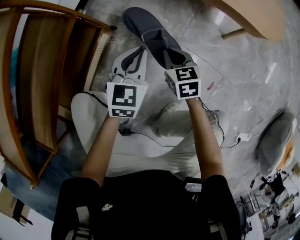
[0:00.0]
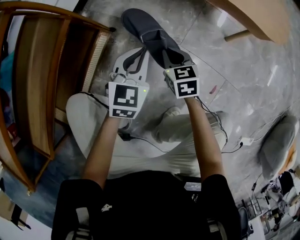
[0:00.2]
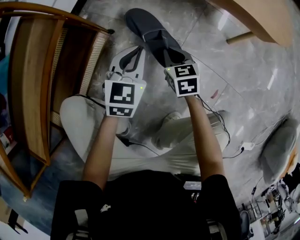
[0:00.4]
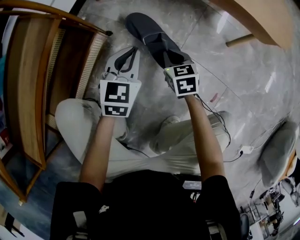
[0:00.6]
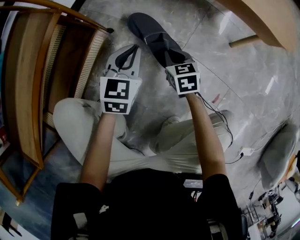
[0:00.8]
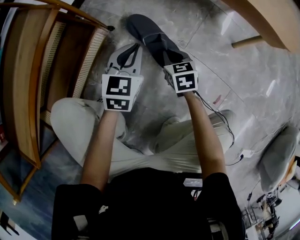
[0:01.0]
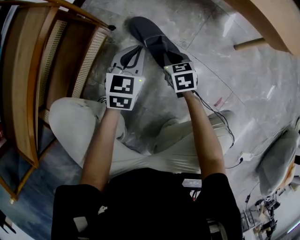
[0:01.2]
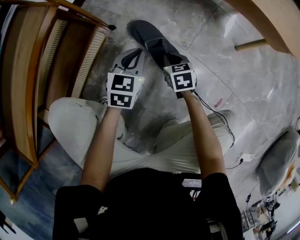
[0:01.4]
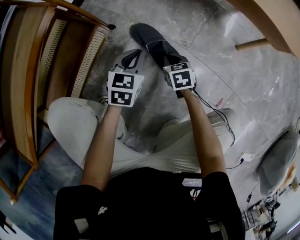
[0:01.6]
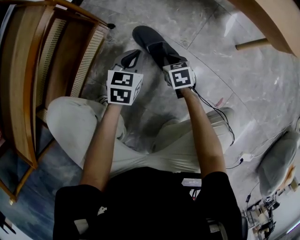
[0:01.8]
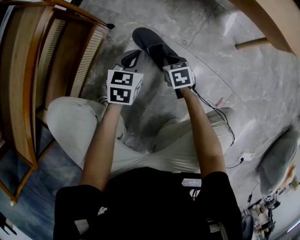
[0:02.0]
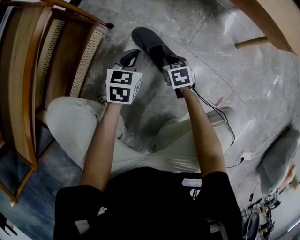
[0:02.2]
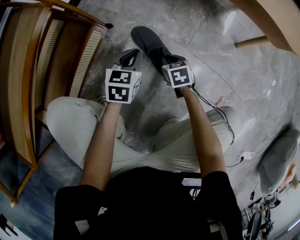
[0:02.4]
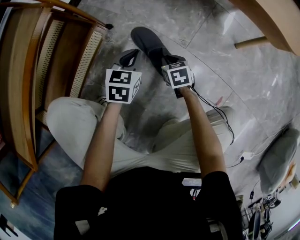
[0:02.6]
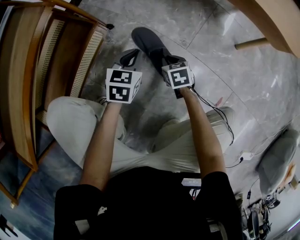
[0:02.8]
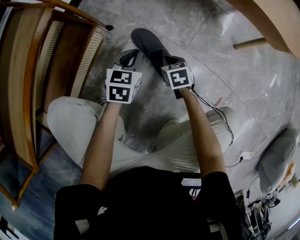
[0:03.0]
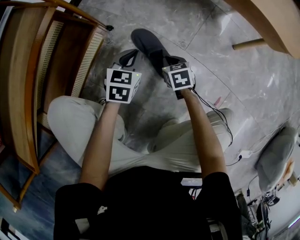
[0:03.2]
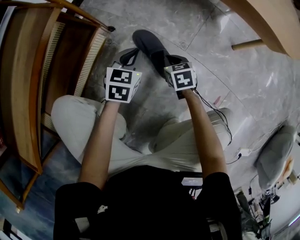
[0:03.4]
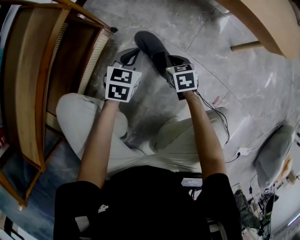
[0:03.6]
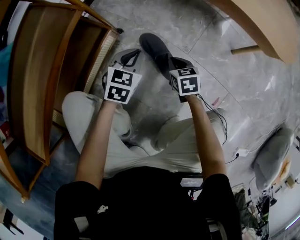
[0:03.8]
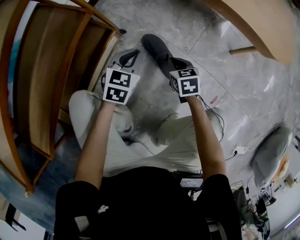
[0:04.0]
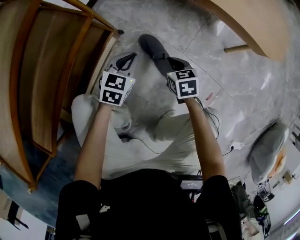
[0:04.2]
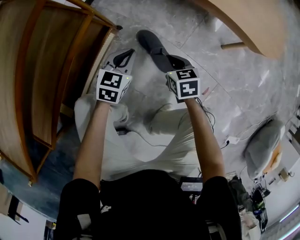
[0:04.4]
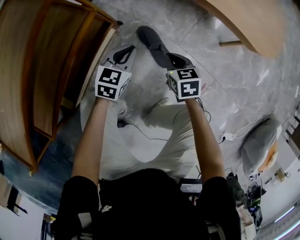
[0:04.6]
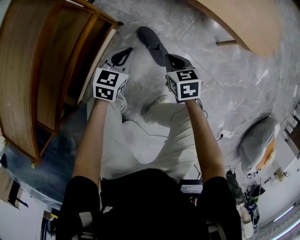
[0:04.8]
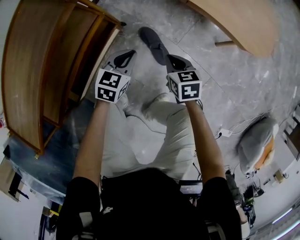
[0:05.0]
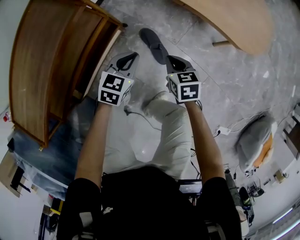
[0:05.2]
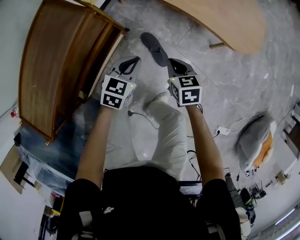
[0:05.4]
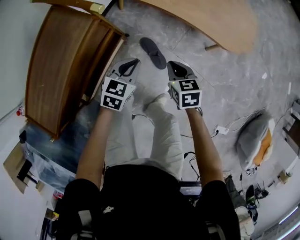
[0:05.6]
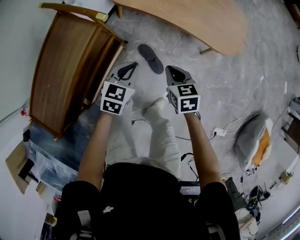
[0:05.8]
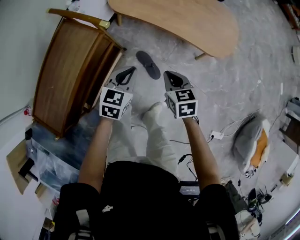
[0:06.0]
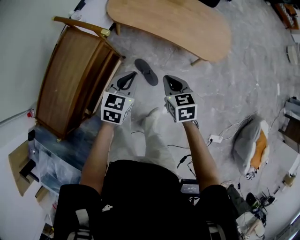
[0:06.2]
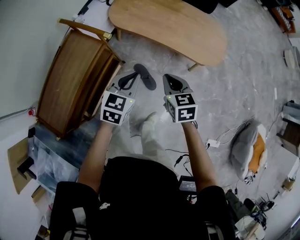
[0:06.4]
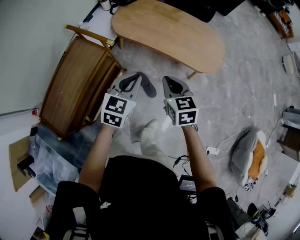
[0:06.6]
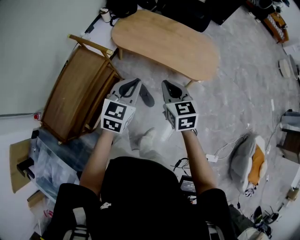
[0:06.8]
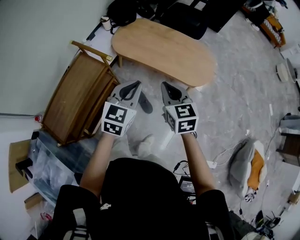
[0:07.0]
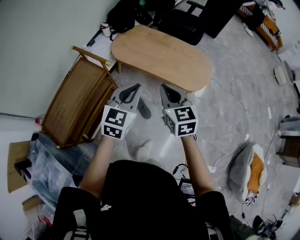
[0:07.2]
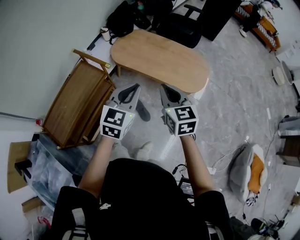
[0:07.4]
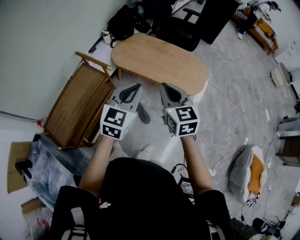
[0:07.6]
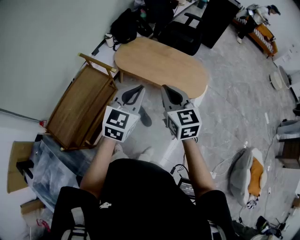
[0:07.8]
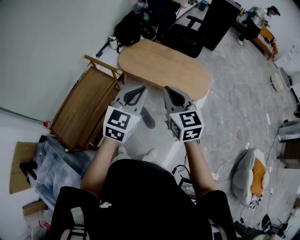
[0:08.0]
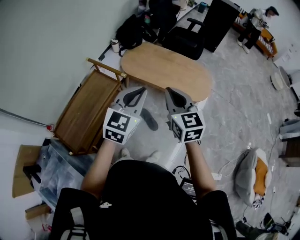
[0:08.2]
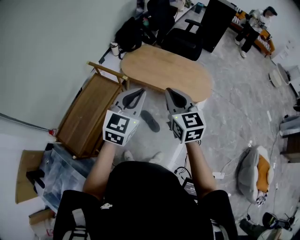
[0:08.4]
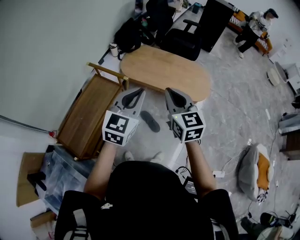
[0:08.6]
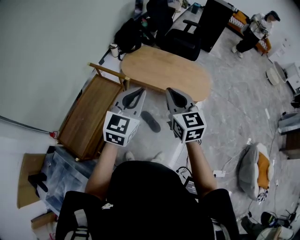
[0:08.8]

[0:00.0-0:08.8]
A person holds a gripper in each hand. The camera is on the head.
0.0 to 1.4 s: Both grippers travel together downward, approximately 20 cm.
1.4 to 3.0 s: There are only small adjustments of the grippers.
3.0 to 4.4 s: Both grippers move upward, approximately 20 cm.
4.4 to 5.8 s: Both grippers travel together upward, about 35 cm.
5.8 to 7.4 s: The two grippers go approximately 35 cm upward. The right gripper changes its angle by roughly 30 degrees, while the left gripper turns by roughly 20 degrees.
7.4 to 8.8 s: Both grippers move to the left and upward, about 15 cm.

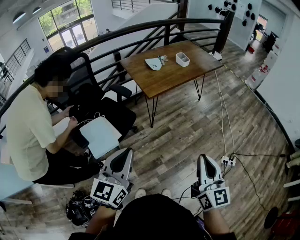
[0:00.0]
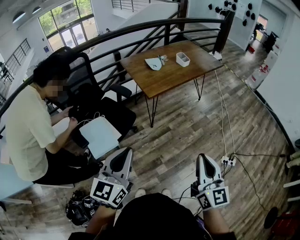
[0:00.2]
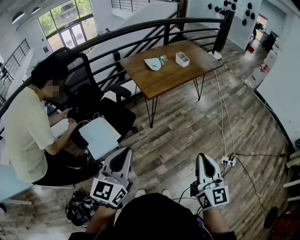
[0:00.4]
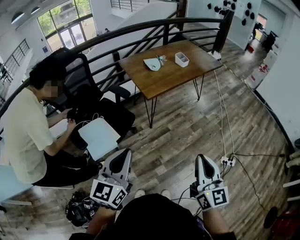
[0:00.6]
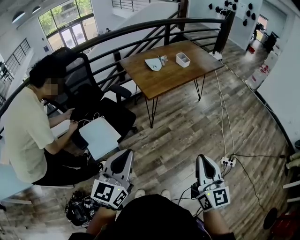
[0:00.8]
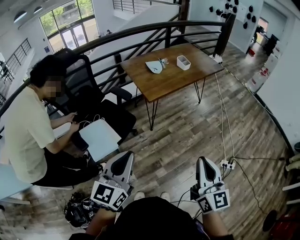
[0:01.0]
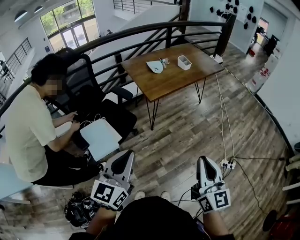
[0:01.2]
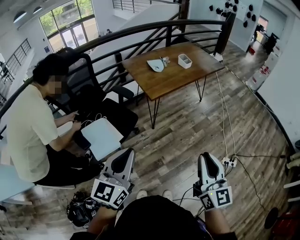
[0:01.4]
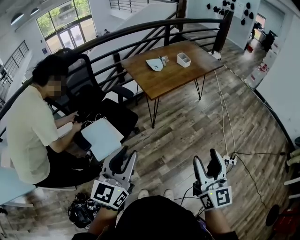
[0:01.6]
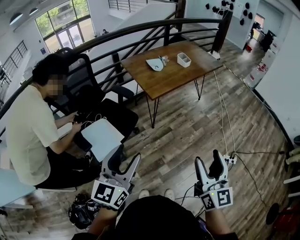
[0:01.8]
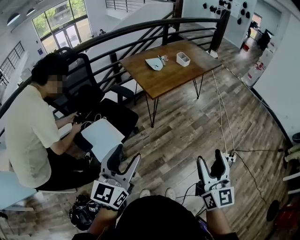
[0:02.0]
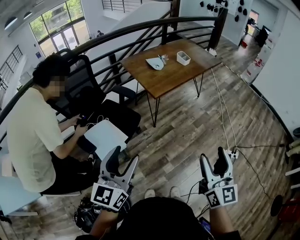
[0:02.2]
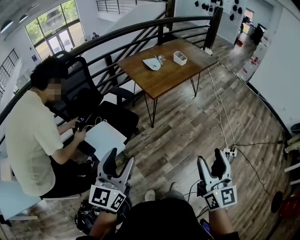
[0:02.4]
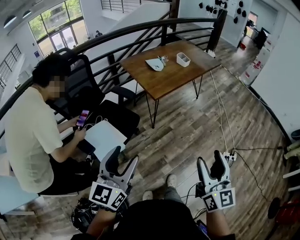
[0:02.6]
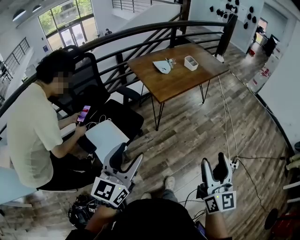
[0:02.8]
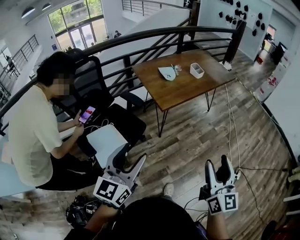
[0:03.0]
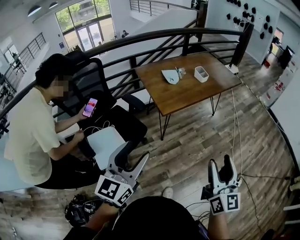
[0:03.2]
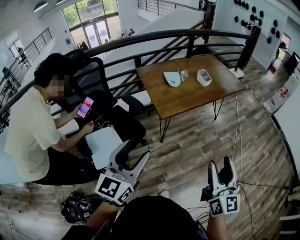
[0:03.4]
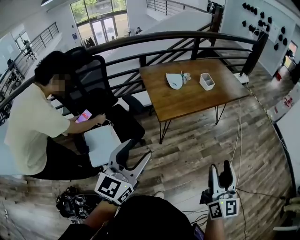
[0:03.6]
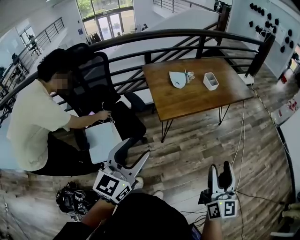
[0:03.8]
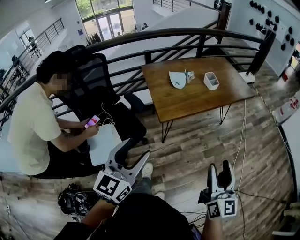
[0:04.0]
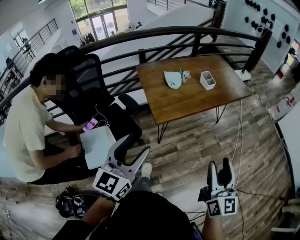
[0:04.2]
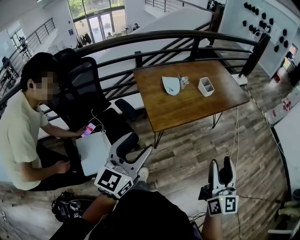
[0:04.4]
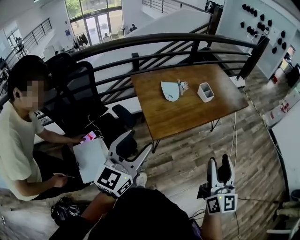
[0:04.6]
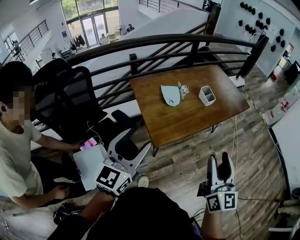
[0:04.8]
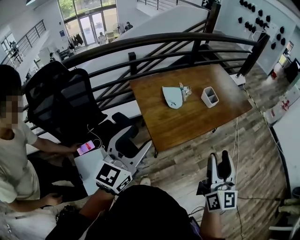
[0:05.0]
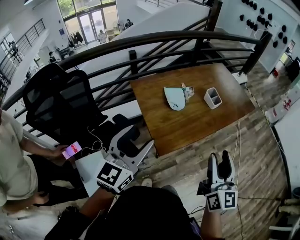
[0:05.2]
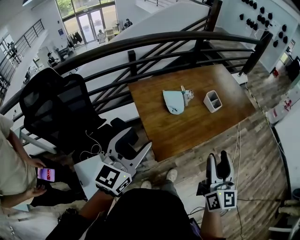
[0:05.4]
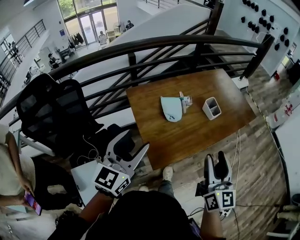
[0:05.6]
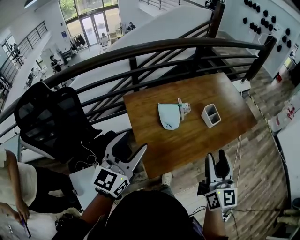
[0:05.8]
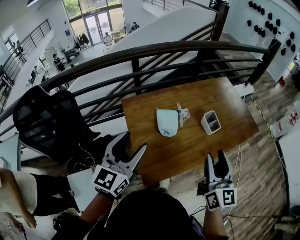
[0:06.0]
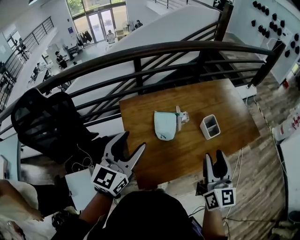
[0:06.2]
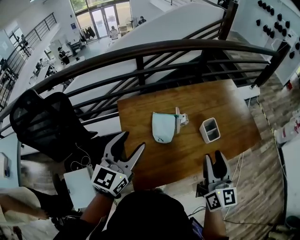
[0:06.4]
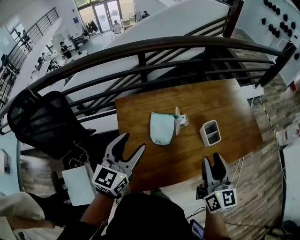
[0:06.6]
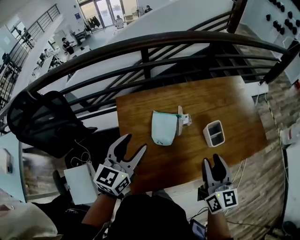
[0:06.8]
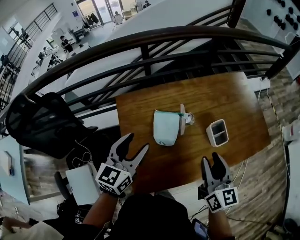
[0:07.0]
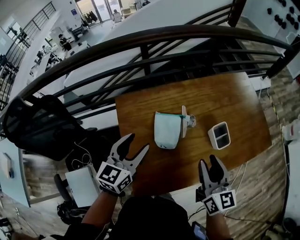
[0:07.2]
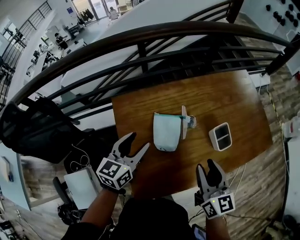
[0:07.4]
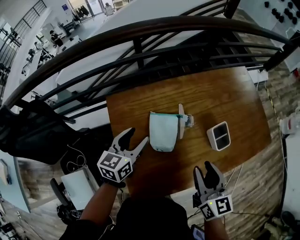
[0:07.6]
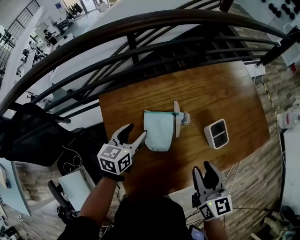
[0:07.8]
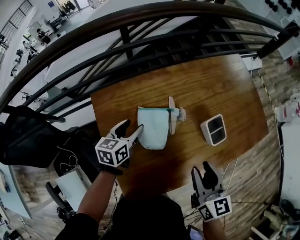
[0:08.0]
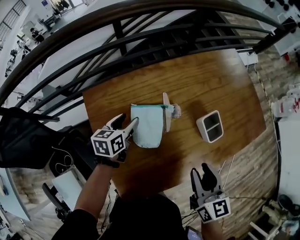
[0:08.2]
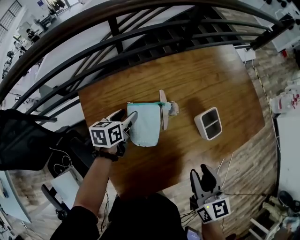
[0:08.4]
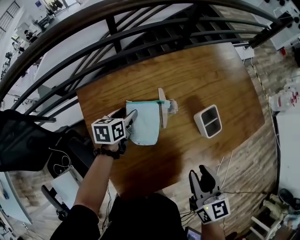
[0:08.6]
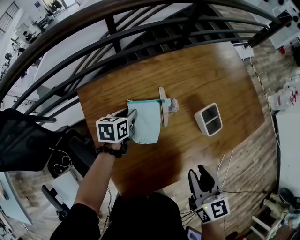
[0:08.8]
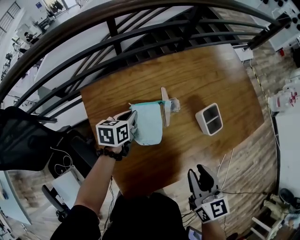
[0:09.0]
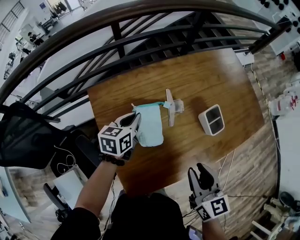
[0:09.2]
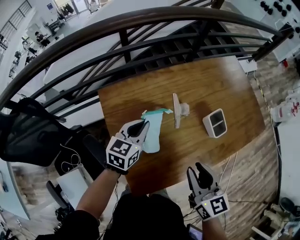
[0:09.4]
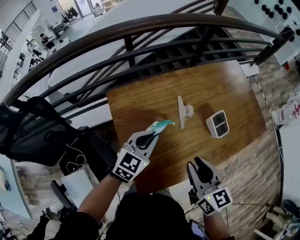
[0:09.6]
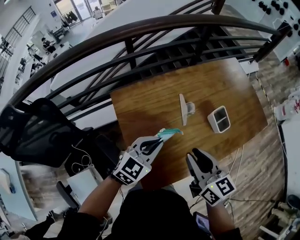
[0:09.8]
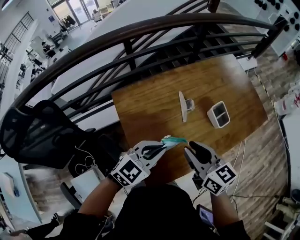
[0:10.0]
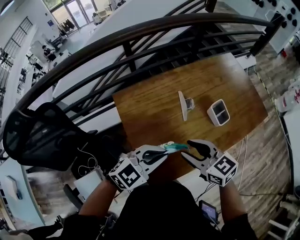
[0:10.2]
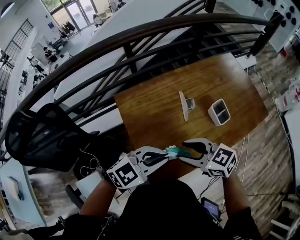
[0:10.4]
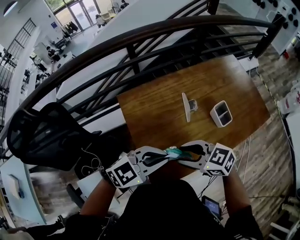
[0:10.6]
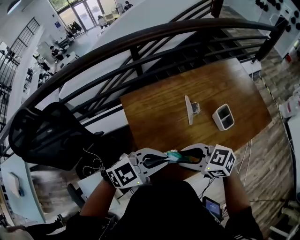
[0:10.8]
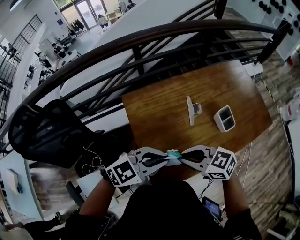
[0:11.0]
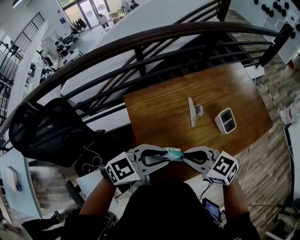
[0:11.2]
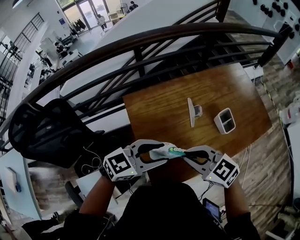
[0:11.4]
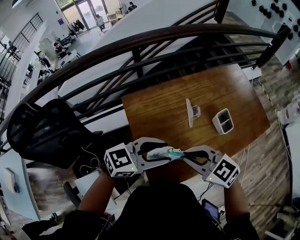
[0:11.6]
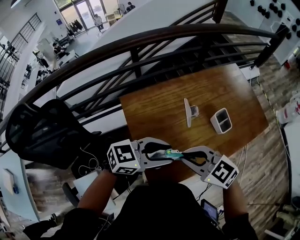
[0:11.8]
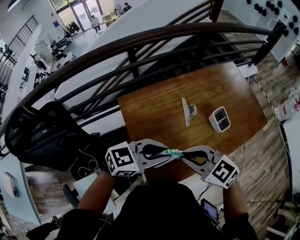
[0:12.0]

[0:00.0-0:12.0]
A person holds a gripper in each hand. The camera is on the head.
0.0 to 1.6 s: The right gripper opens.
1.6 to 3.0 s: Both grippers travel together forward, some 5 cm. The left gripper opens.
3.0 to 4.4 s: Both grippers move forward, about 25 cm.
4.4 to 6.0 s: The grippers both shift forward by approximately 35 cm.
6.0 to 7.6 s: Both grippers move forward and downward, roughly 25 cm. The left gripper changes its angle by some 30 degrees. Meanwhile the right gripper swivels about 30 degrees.
7.6 to 9.0 s: The right gripper moves some 5 cm, while the left gripper is displaced downward and forward by some 15 cm, turns by some 20 degrees, and closes.
9.0 to 10.4 s: The left gripper changes place by approximately 30 cm, and twists approximately 50 degrees clockwise, seen from behind; the right gripper shifts by some 15 cm, and turns by approximately 50 degrees.
10.4 to 12.0 s: The right gripper closes up, while the left gripper opens, then closes once more.

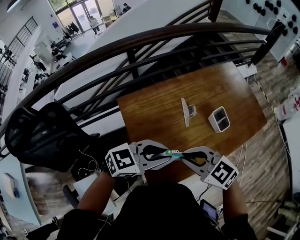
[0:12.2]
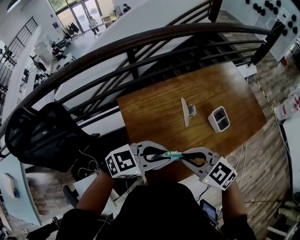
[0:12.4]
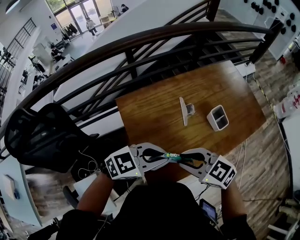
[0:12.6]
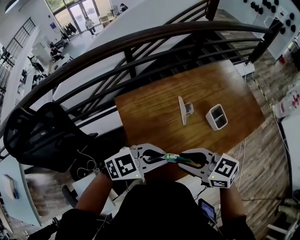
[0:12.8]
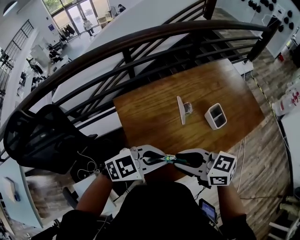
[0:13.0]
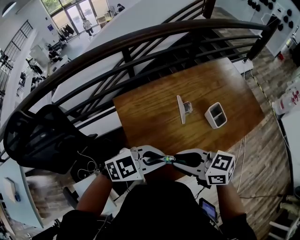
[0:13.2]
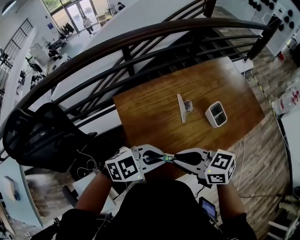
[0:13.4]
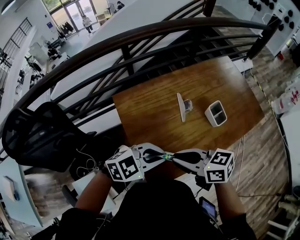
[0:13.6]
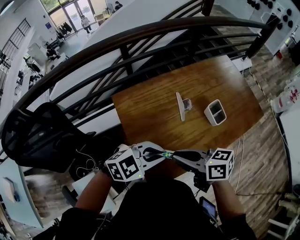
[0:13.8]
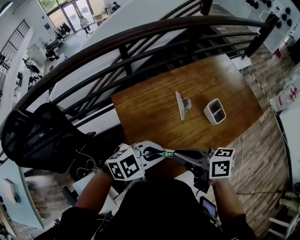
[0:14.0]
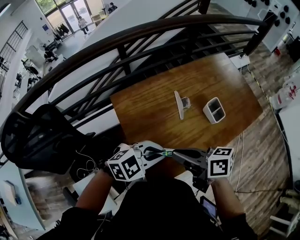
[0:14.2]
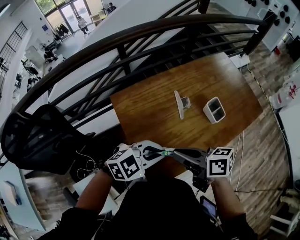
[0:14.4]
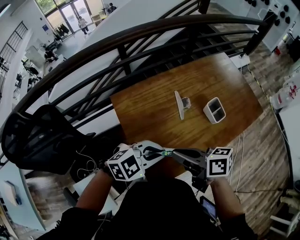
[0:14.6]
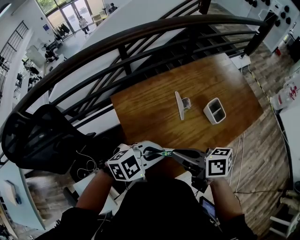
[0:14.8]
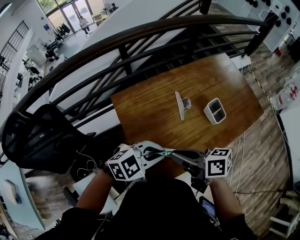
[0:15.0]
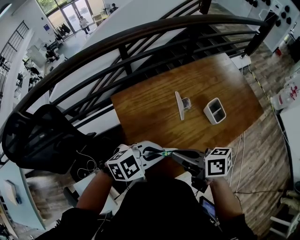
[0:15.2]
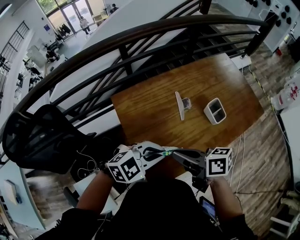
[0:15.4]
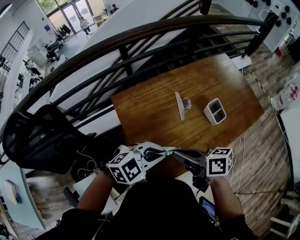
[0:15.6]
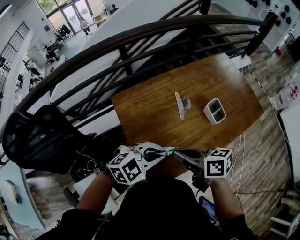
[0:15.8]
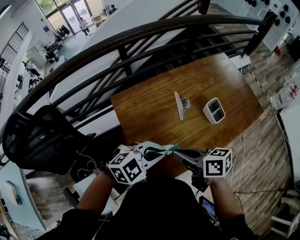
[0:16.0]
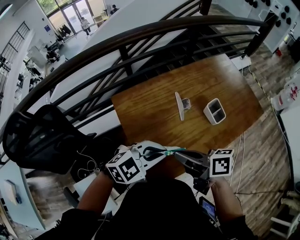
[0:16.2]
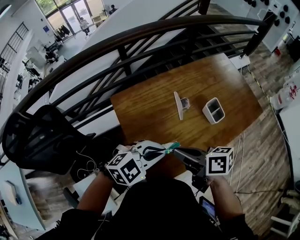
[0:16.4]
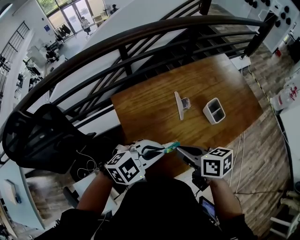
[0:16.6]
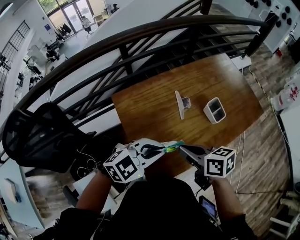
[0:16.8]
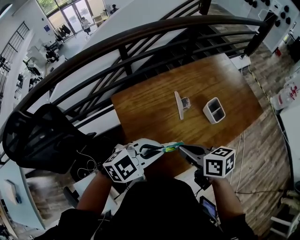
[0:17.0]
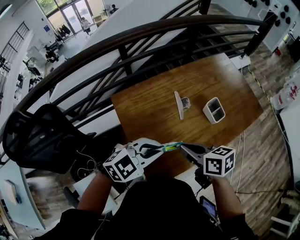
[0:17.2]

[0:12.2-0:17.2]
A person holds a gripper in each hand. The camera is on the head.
12.2 to 13.8 s: The right gripper twists roughly 50 degrees clockwise, seen from behind. Meanwhile the left gripper rotates some 20 degrees.
13.8 to 17.2 s: The grippers stay close to where they were, moving slightly.
